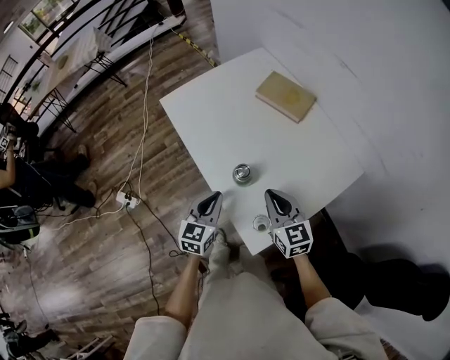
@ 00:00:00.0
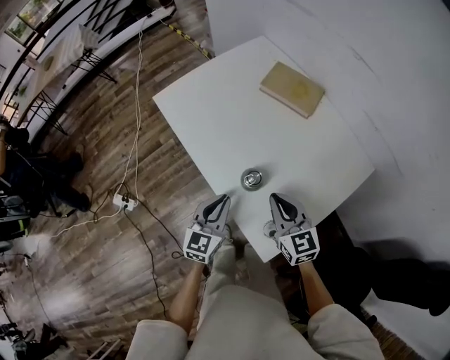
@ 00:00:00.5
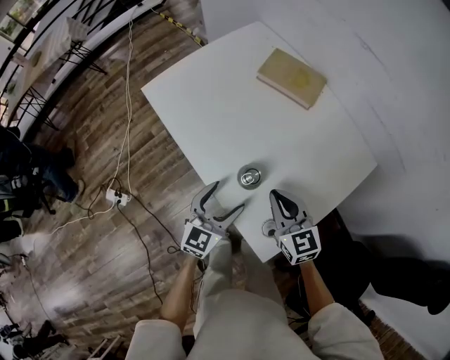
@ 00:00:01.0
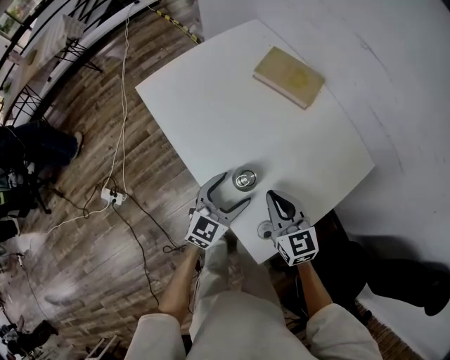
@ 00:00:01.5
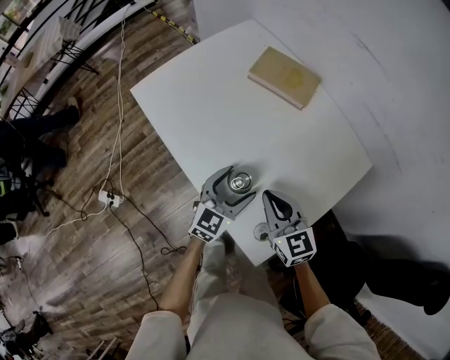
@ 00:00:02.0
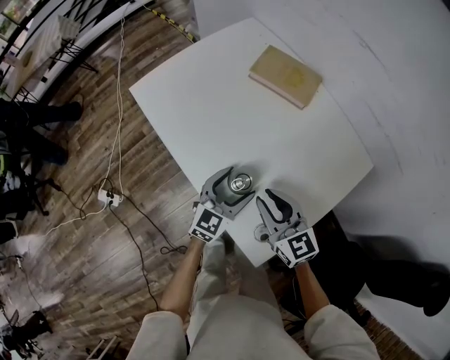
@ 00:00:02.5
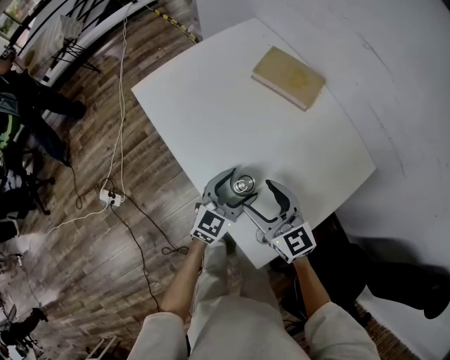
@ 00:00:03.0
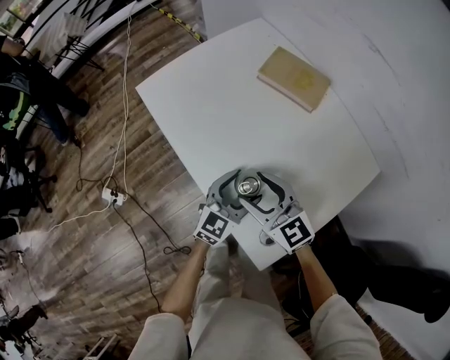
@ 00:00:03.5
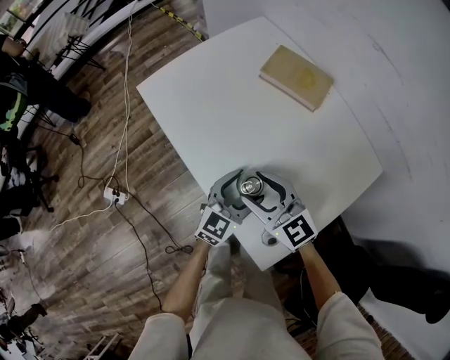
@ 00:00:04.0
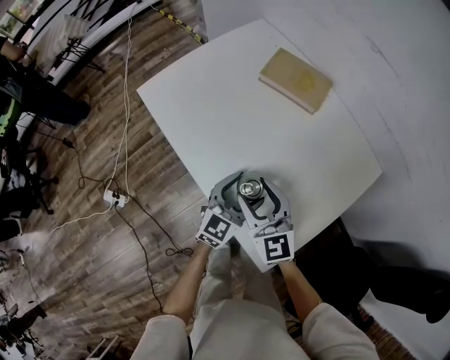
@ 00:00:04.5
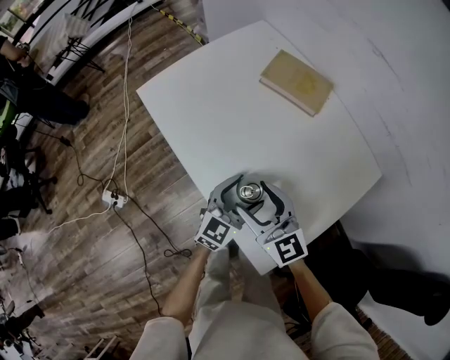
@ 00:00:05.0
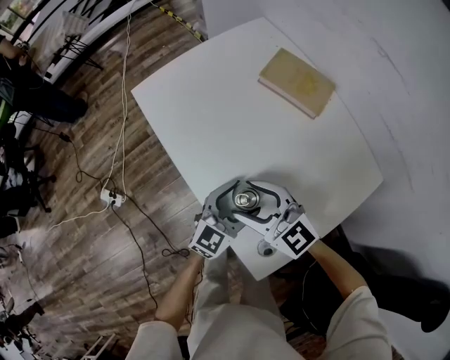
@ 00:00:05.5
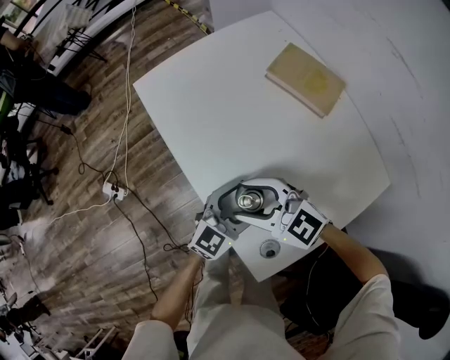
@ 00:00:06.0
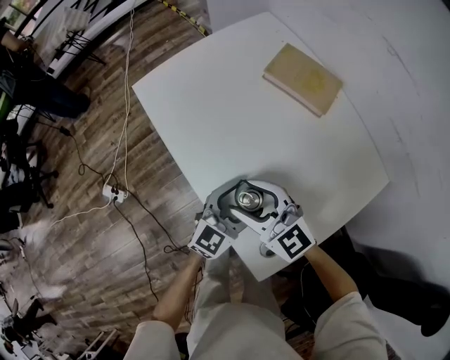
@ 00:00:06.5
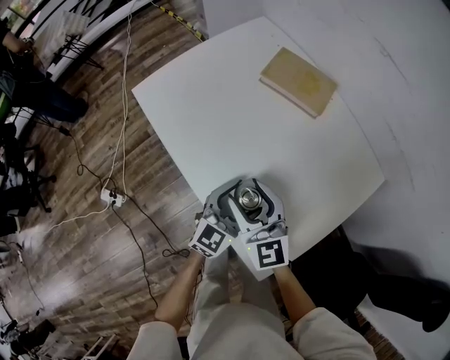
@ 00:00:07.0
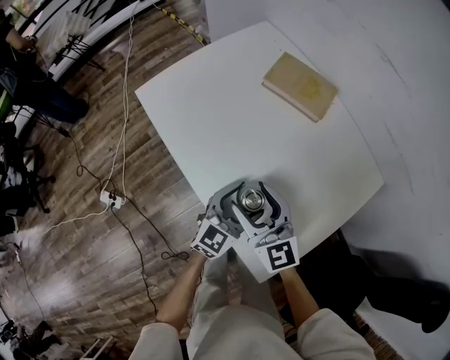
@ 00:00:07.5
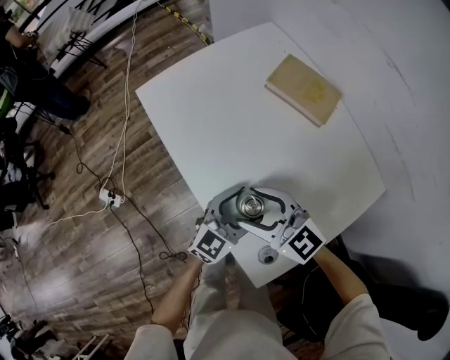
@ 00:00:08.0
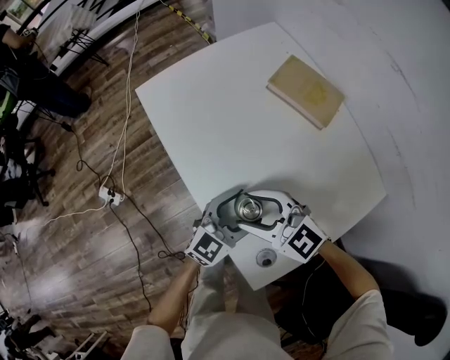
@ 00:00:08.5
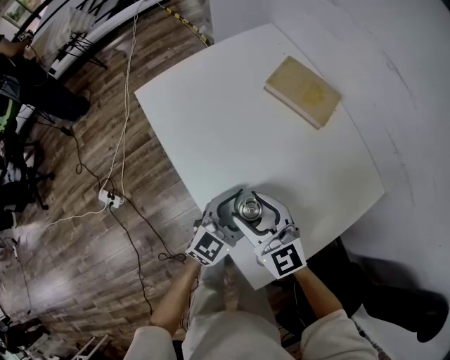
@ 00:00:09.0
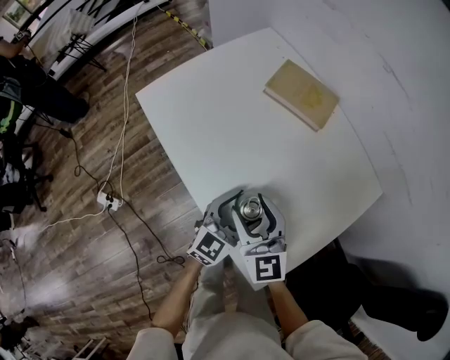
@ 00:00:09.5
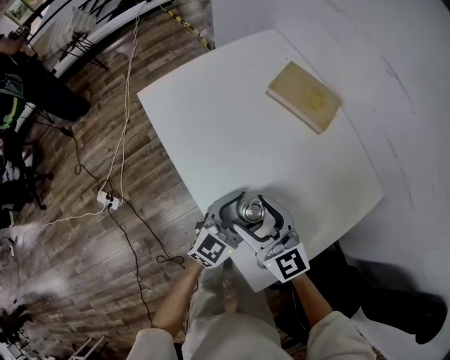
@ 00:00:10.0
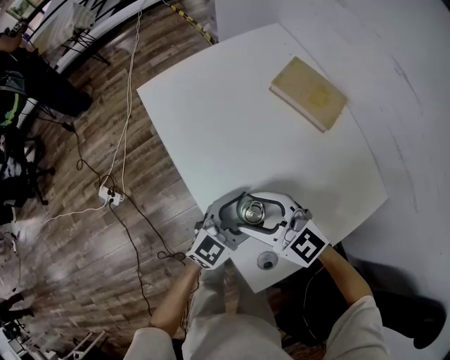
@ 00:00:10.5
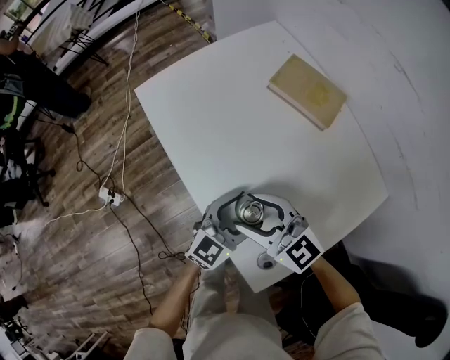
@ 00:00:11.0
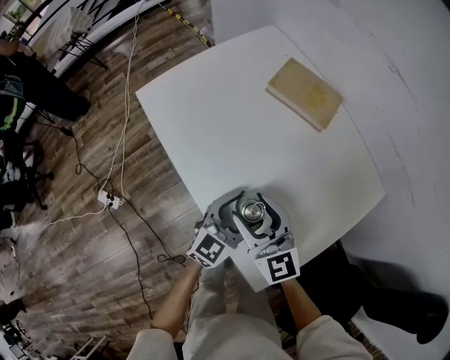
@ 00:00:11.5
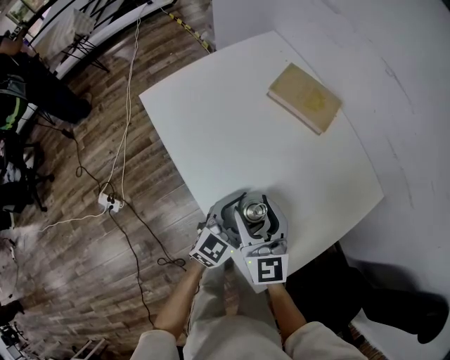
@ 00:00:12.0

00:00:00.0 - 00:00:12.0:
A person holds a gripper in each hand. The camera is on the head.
00:00:00.0 - 00:00:02.0: The right gripper heads downward, covering approximately 5 cm; the left gripper is displaced forward, to the right and downward by about 15 cm, rotates roughly 20 degrees, and opens its fingers.
00:00:02.0 - 00:00:04.0: The right gripper shifts about 10 cm to the left, turns by roughly 20 degrees, and opens.
00:00:04.0 - 00:00:06.0: The right gripper changes its angle by some 30 degrees.
00:00:08.0 - 00:00:10.0: The right gripper rotates approximately 20 degrees.
00:00:10.0 - 00:00:12.0: The right gripper turns by about 20 degrees.

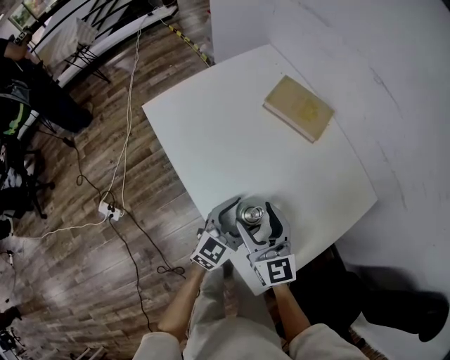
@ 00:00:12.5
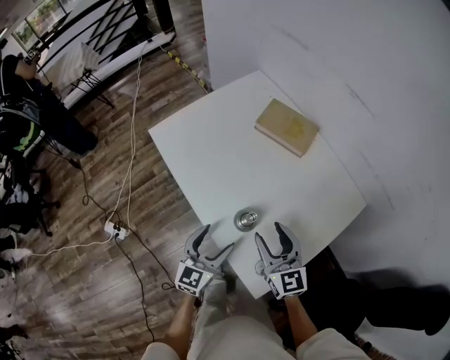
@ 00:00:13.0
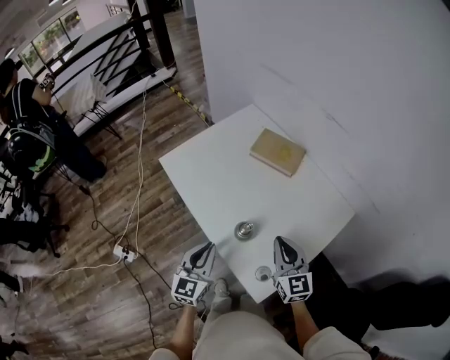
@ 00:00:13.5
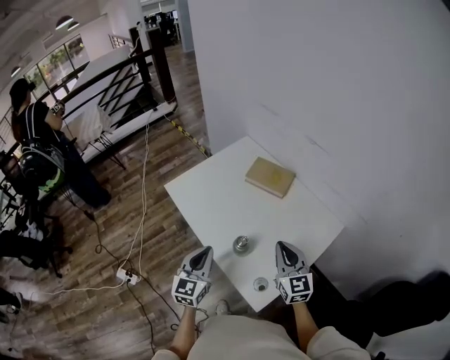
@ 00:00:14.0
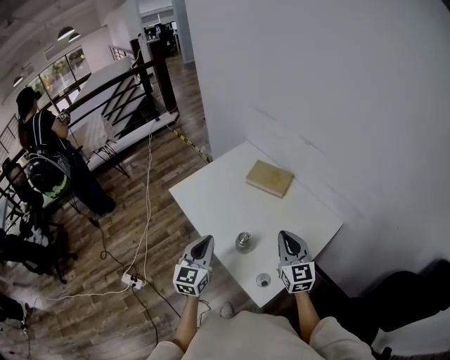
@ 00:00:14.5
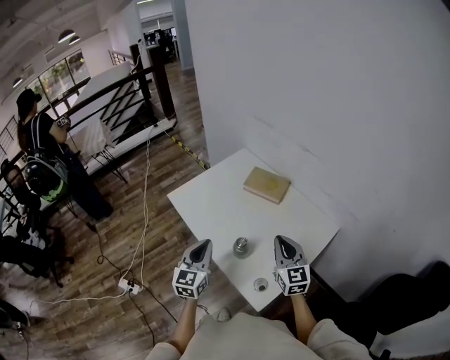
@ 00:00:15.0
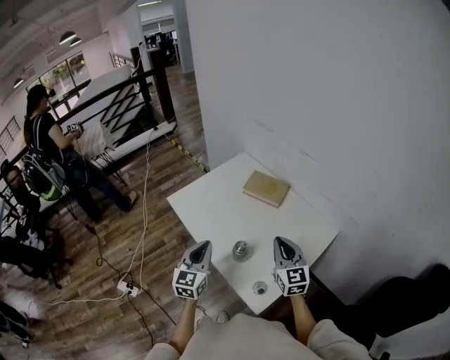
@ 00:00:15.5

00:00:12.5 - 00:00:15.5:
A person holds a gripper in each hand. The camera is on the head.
00:00:12.5 - 00:00:14.0: The right gripper shifts approximately 20 cm upward and to the right, and closes its fingers, while the left gripper is displaced upward and to the left by about 25 cm, changes its angle by about 20 degrees, and closes its fingers.
00:00:14.0 - 00:00:15.5: The grippers stay close to where they were, moving slightly.

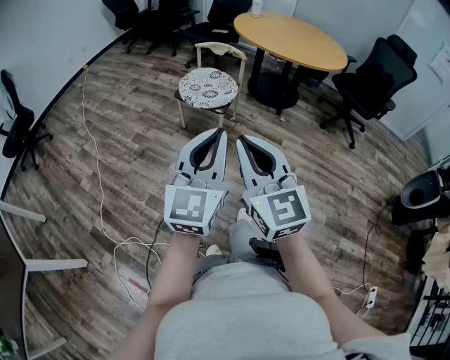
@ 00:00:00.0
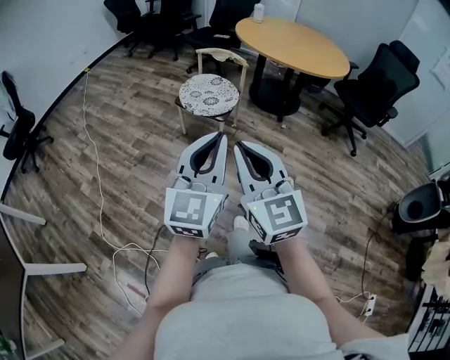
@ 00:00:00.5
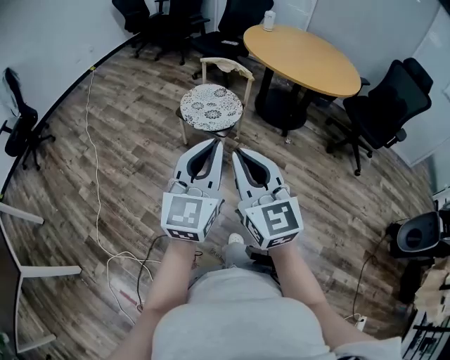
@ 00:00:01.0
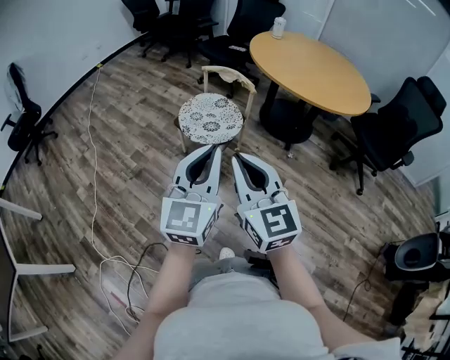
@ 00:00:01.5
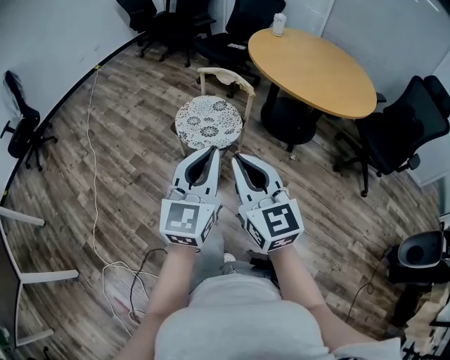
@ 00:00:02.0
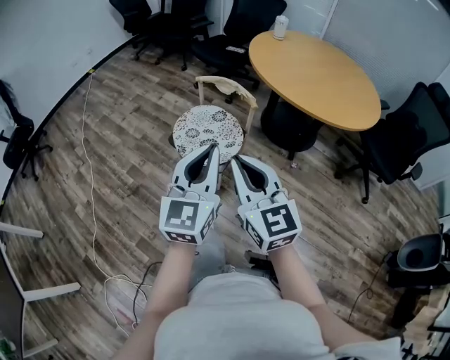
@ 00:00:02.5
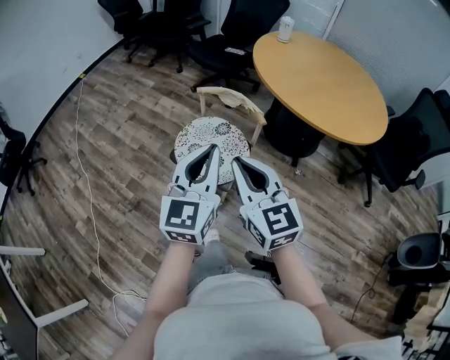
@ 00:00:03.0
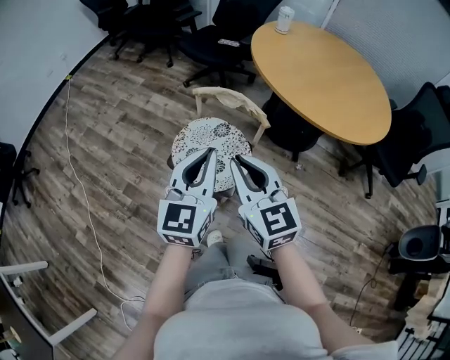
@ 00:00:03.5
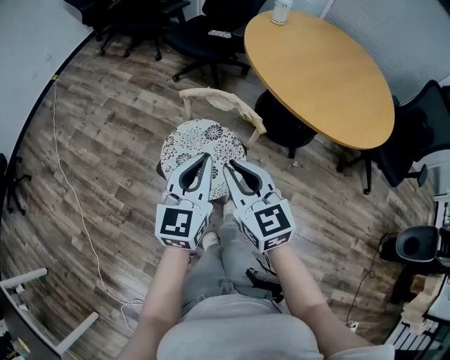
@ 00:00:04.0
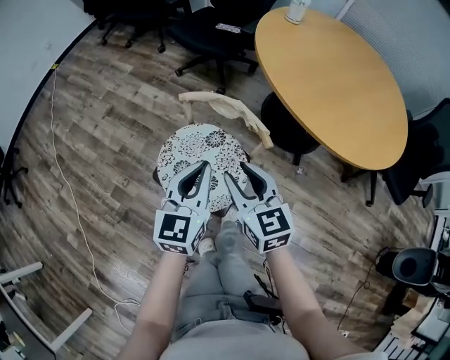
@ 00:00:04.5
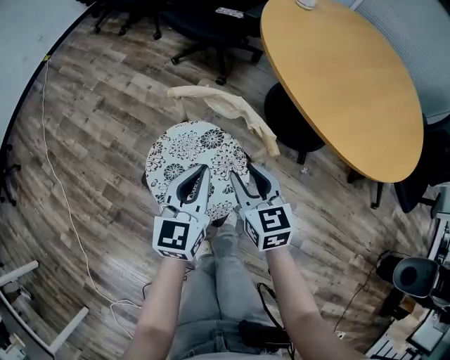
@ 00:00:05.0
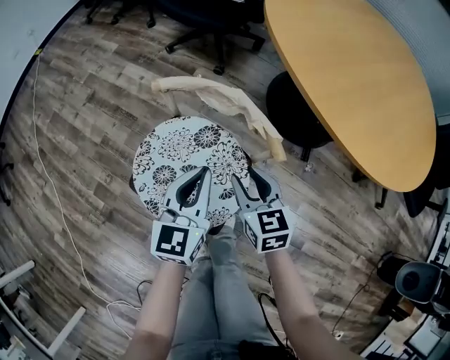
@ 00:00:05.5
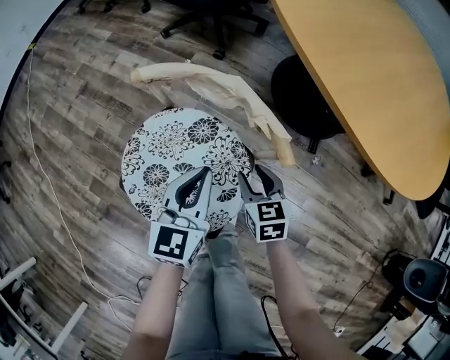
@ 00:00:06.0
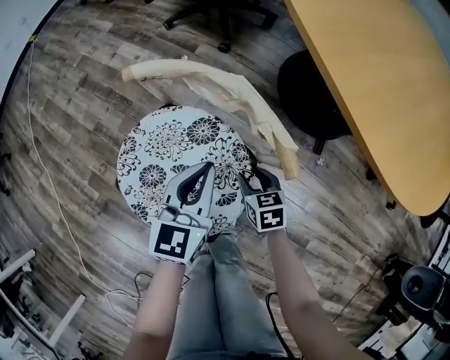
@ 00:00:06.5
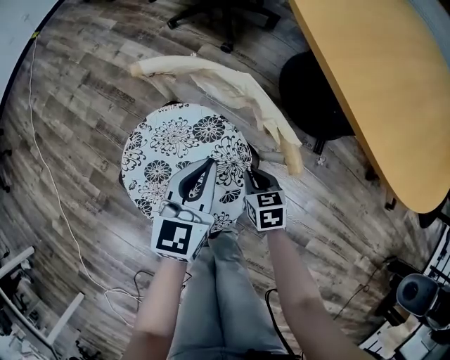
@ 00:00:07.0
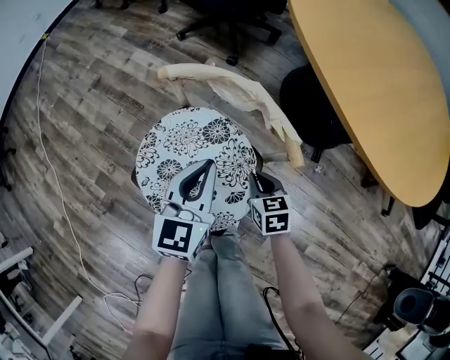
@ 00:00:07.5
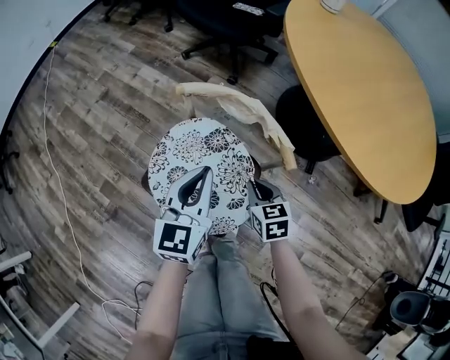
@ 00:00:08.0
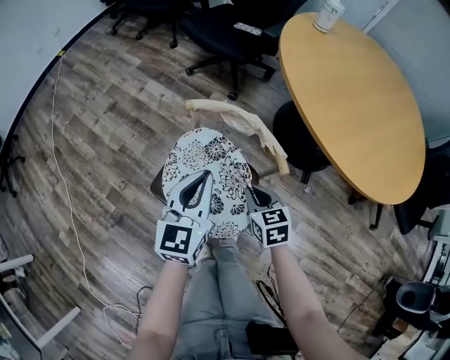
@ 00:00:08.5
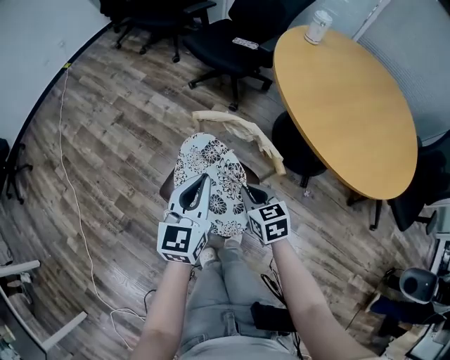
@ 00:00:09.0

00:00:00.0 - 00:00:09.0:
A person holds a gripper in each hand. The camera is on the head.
00:00:00.0 - 00:00:02.0: Both grippers travel together forward, approximately 30 cm.
00:00:02.0 - 00:00:04.5: Both grippers are carried forward, approximately 40 cm. Both grippers move downward, about 20 cm. The right gripper turns by some 20 degrees, and opens up.
00:00:04.5 - 00:00:07.0: The right gripper is displaced downward by approximately 40 cm, points its fingers about 30 degrees further downward, and closes up, while the left gripper heads downward and forward, covering roughly 25 cm.
00:00:07.0 - 00:00:09.0: The left gripper heads upward and to the left, covering some 25 cm; the right gripper is displaced upward by roughly 25 cm.

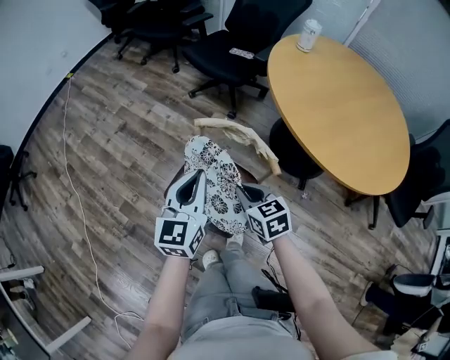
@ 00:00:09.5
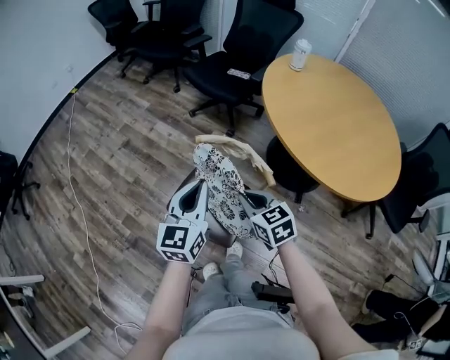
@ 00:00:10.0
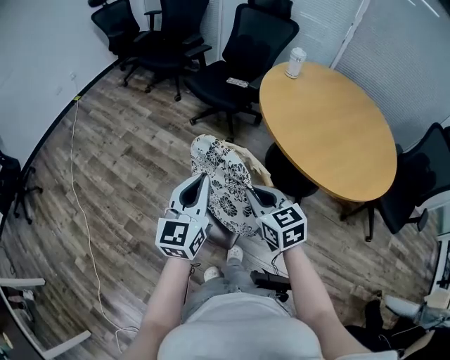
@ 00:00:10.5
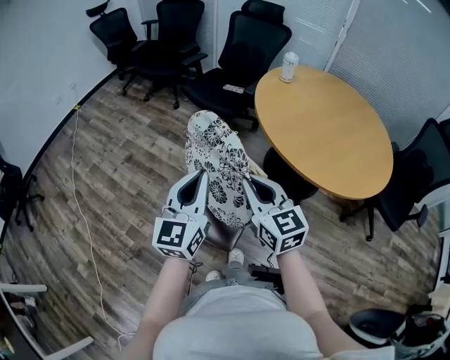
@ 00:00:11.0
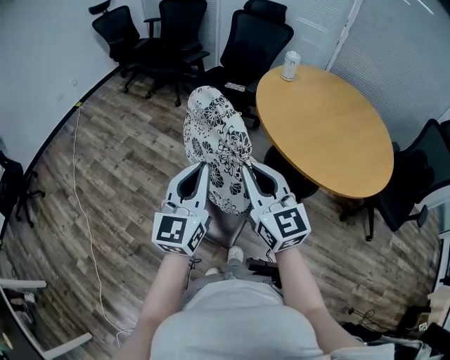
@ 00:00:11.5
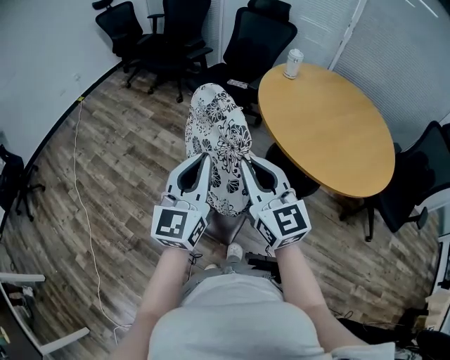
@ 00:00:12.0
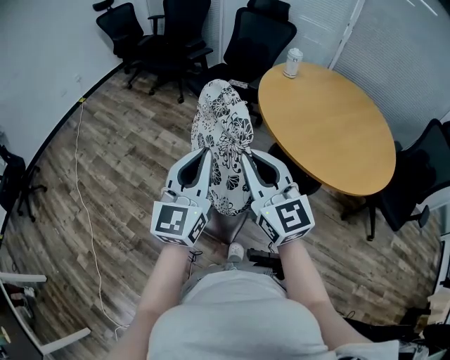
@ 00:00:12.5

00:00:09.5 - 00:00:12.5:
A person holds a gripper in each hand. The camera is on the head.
00:00:09.5 - 00:00:11.0: The right gripper shifts some 20 cm upward, and swivels some 30 degrees. Meanwhile the left gripper goes about 15 cm upward.
00:00:11.0 - 00:00:12.5: The left gripper moves approximately 5 cm, while the right gripper is displaced upward by approximately 10 cm.
